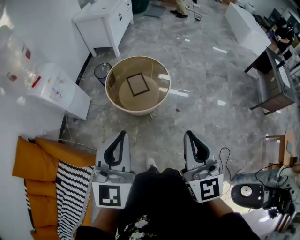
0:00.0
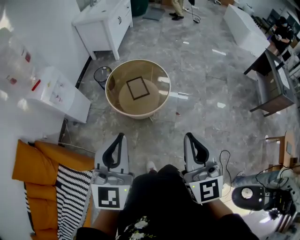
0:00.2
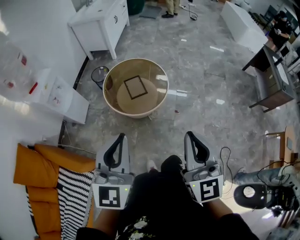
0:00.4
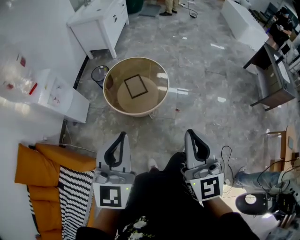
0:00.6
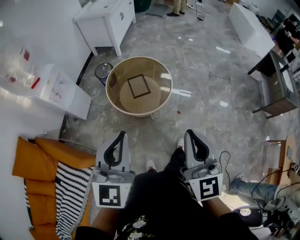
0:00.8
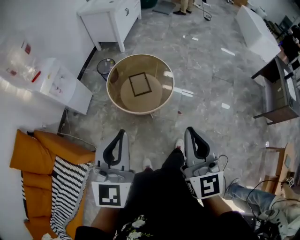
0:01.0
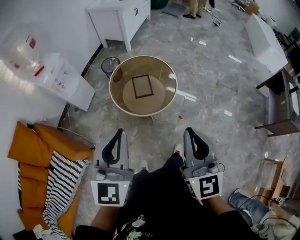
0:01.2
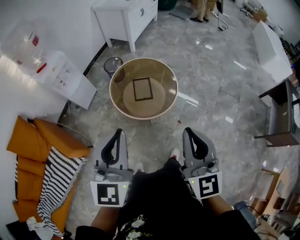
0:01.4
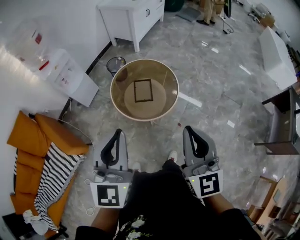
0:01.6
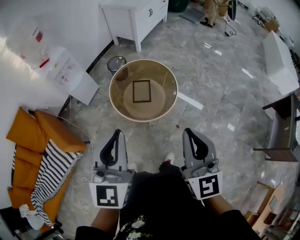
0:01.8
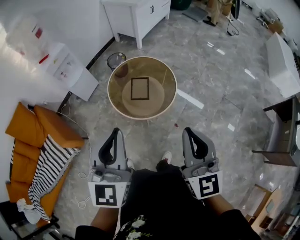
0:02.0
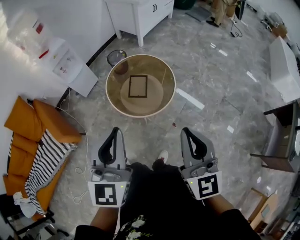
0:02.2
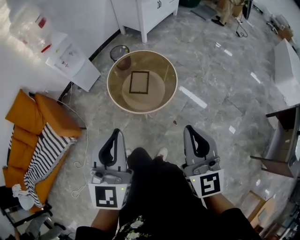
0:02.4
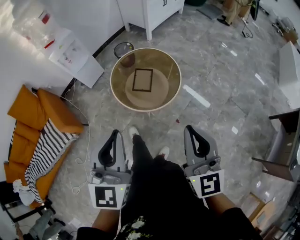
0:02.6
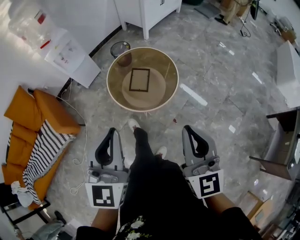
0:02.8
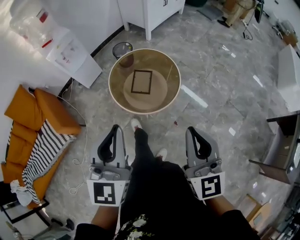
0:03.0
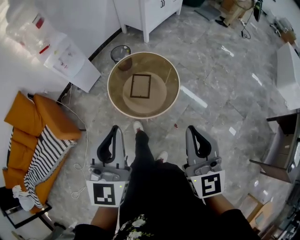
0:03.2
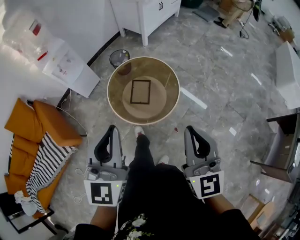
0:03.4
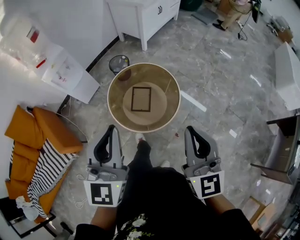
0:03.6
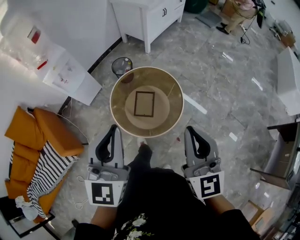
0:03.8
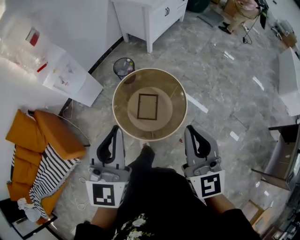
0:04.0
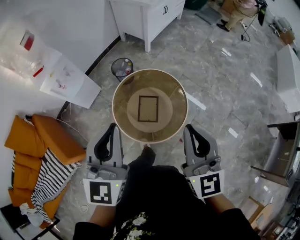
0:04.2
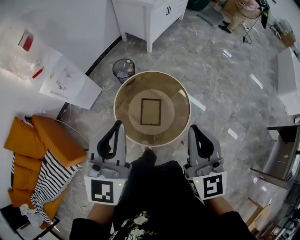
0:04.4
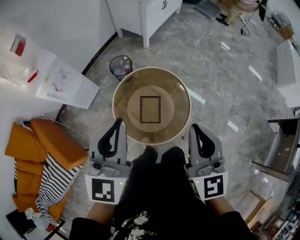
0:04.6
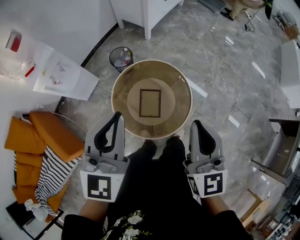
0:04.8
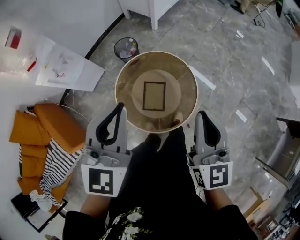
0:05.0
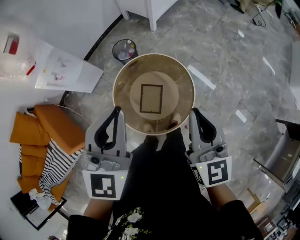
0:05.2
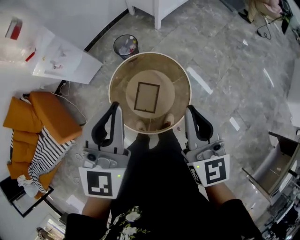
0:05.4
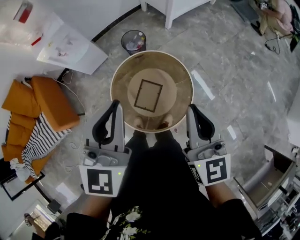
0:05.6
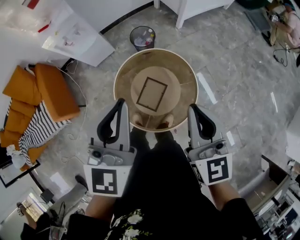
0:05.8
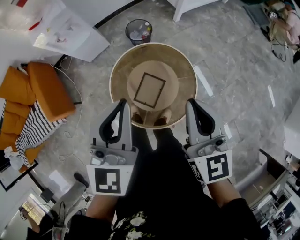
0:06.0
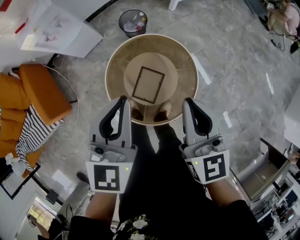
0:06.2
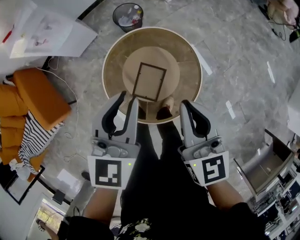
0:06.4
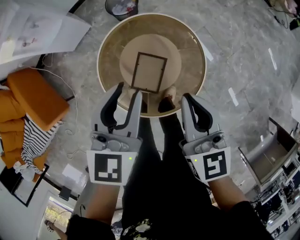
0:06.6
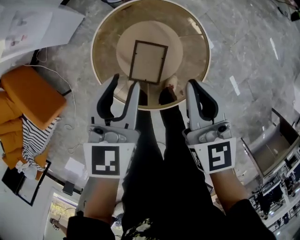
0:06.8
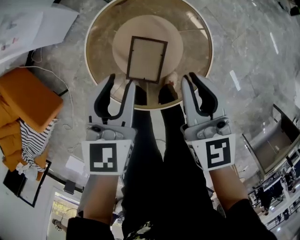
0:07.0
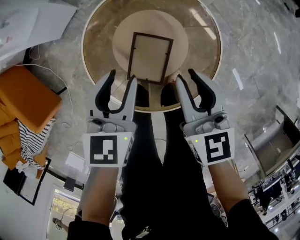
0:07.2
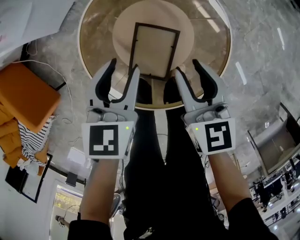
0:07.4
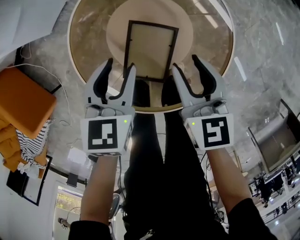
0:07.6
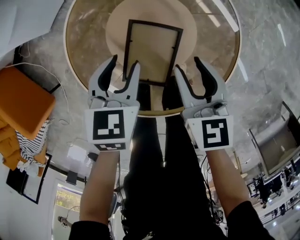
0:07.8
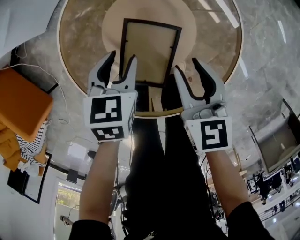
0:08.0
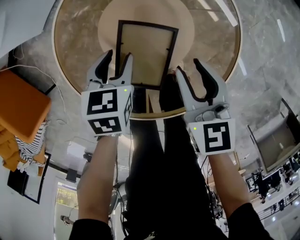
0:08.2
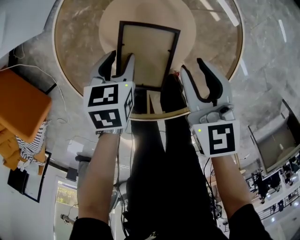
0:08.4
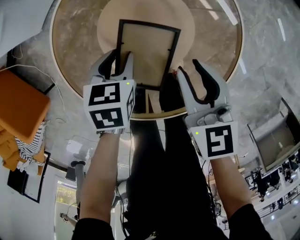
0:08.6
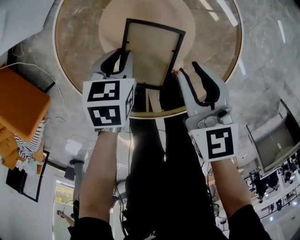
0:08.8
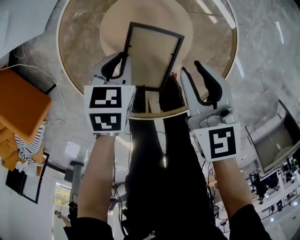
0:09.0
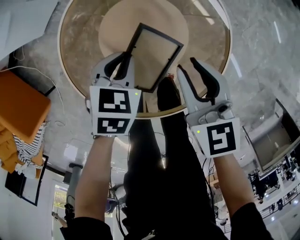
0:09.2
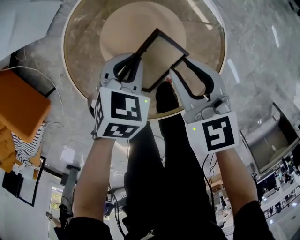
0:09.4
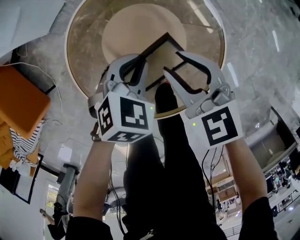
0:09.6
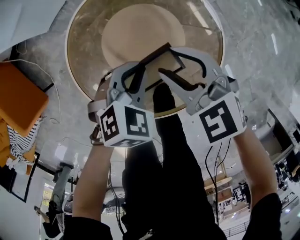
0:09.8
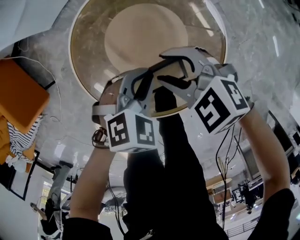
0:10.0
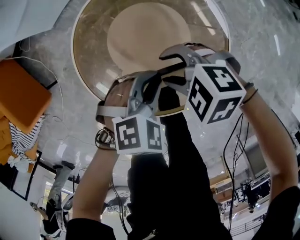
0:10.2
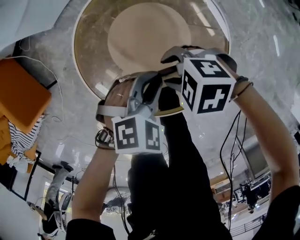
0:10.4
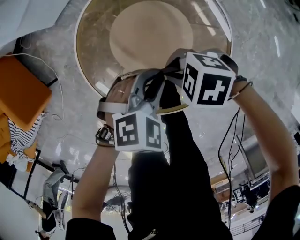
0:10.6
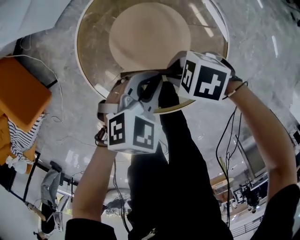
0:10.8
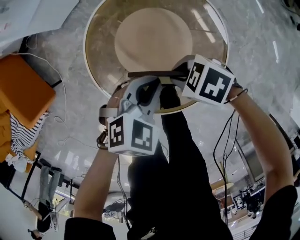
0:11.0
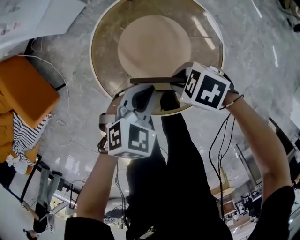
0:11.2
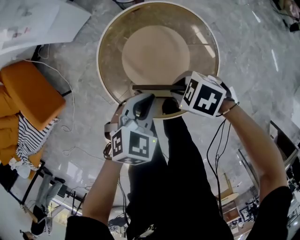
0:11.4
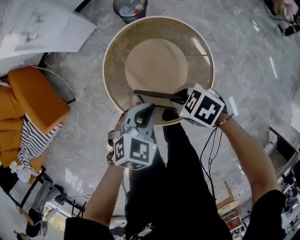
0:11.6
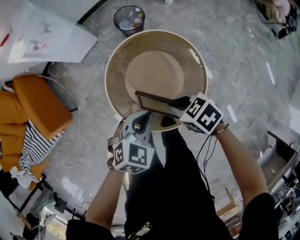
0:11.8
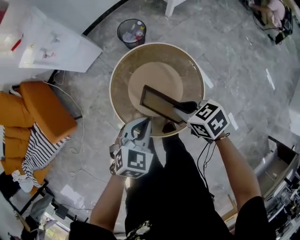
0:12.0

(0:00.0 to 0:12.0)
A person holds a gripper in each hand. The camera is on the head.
0:00.0 - 0:01.6: The grippers both shift forward and to the right by some 20 cm.
0:01.6 - 0:03.0: Both grippers move to the right, some 10 cm.
0:03.0 - 0:04.4: Both grippers travel together forward, roughly 30 cm.
0:04.4 - 0:06.0: The left gripper ends up about 15 cm from where it was, and rotates some 20 degrees. Meanwhile the right gripper ends up about 20 cm from where it was, and rotates roughly 30 degrees.
0:06.0 - 0:07.6: Both grippers move downward, about 50 cm. The right gripper changes its angle by about 30 degrees, and opens its fingers; the left gripper angles its fingers downward, by approximately 30 degrees, and opens.
0:07.6 - 0:09.0: The left gripper heads downward, covering about 10 cm, and closes.
0:09.0 - 0:10.4: The right gripper changes place by some 10 cm, turns by roughly 90 degrees, and opens its fingers. Meanwhile the left gripper is displaced upward by roughly 10 cm, and rotates around the line of its fingers by some 40 degrees, clockwise from behind.
0:10.4 - 0:12.0: Both grippers move upward, approximately 30 cm. The left gripper changes its angle by roughly 20 degrees, while the right gripper rotates around the line of its fingers by approximately 50 degrees, clockwise from behind, and closes up.

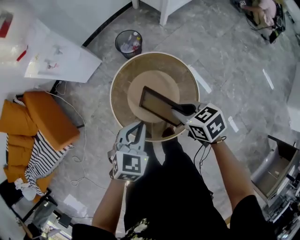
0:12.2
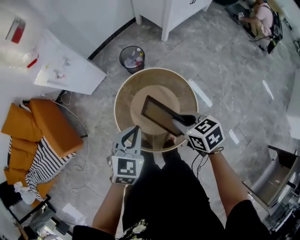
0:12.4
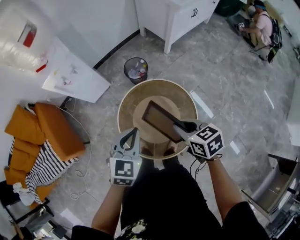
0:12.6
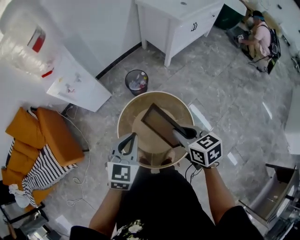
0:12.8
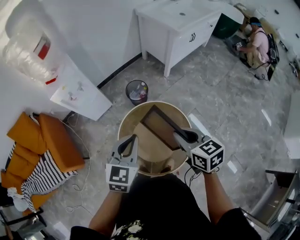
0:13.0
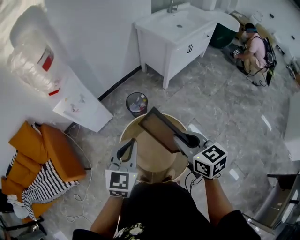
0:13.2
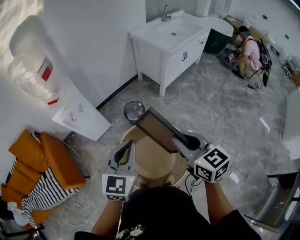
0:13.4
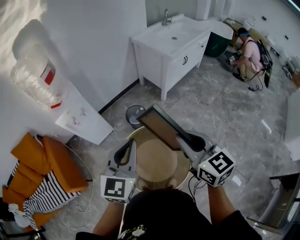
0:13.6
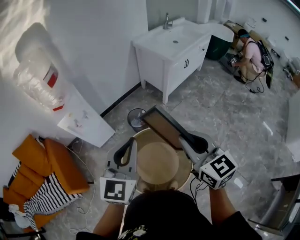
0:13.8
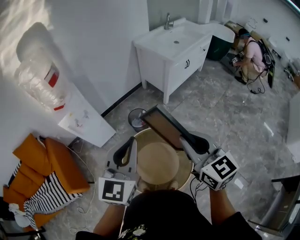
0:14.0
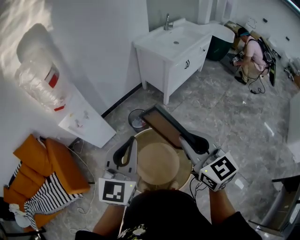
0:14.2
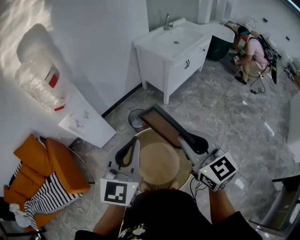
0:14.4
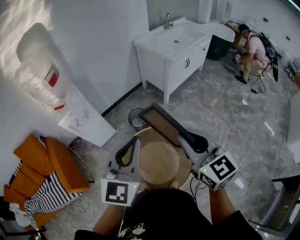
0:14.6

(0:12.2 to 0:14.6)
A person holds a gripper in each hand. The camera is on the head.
0:12.2 - 0:13.4: Both grippers travel together upward, roughly 30 cm. The right gripper changes its angle by some 40 degrees. The left gripper changes its angle by roughly 30 degrees.
0:13.4 - 0:14.6: Both grippers travel together upward, about 10 cm.

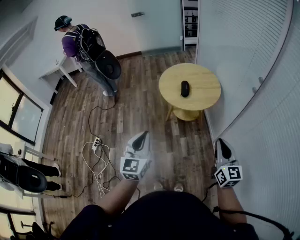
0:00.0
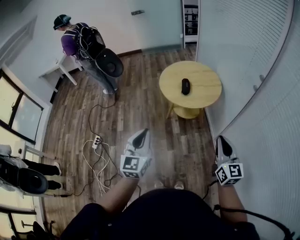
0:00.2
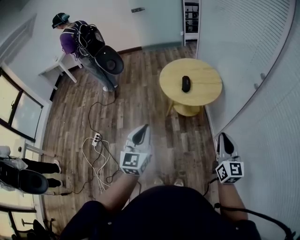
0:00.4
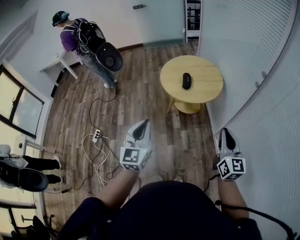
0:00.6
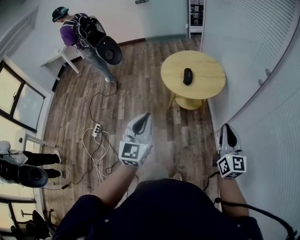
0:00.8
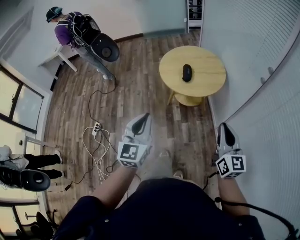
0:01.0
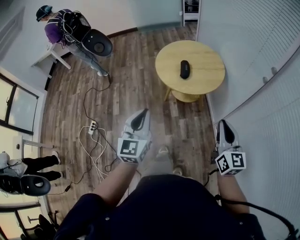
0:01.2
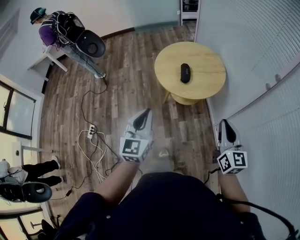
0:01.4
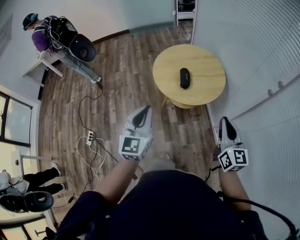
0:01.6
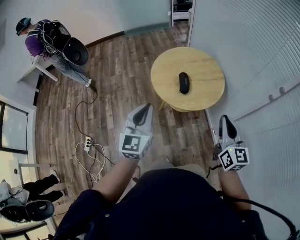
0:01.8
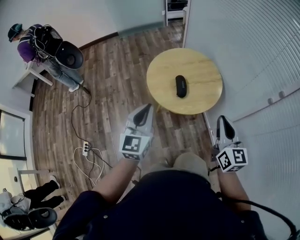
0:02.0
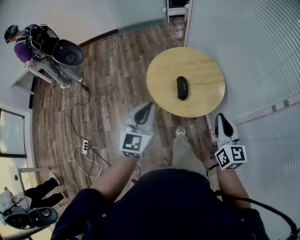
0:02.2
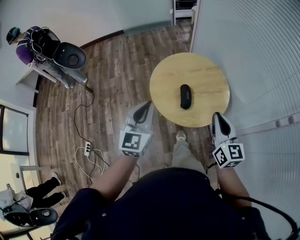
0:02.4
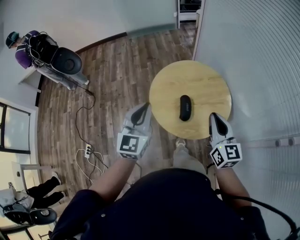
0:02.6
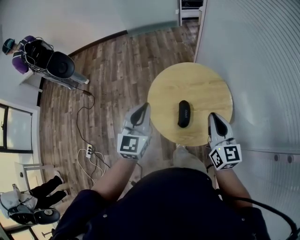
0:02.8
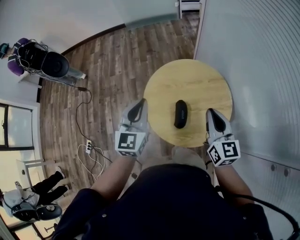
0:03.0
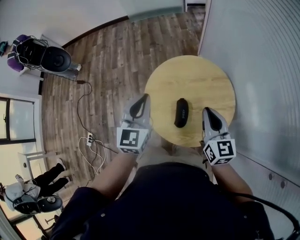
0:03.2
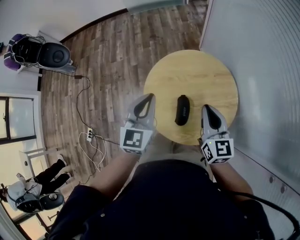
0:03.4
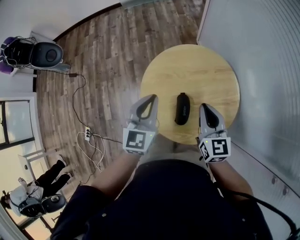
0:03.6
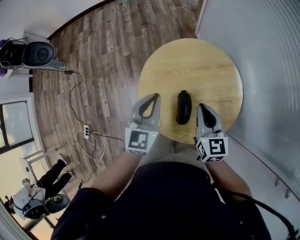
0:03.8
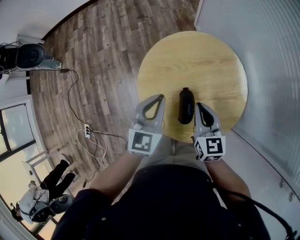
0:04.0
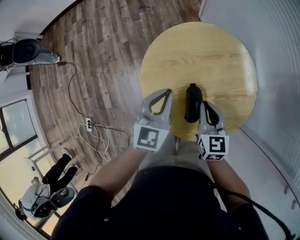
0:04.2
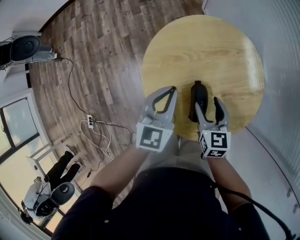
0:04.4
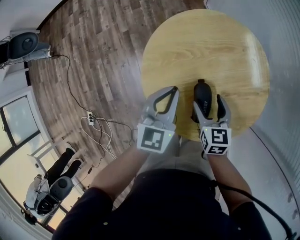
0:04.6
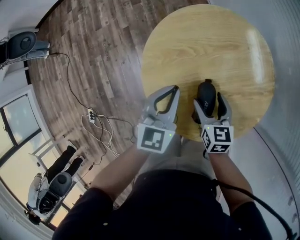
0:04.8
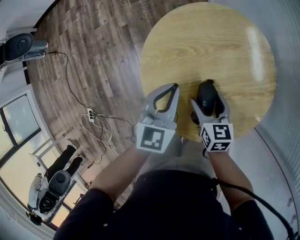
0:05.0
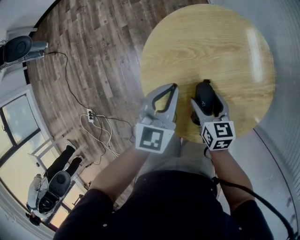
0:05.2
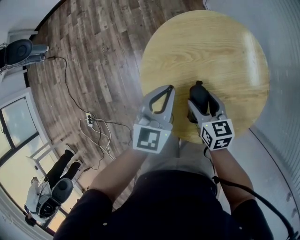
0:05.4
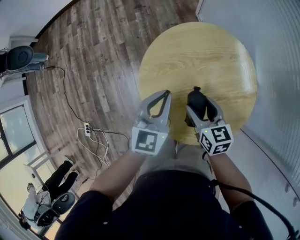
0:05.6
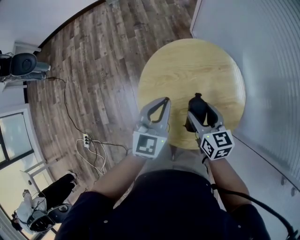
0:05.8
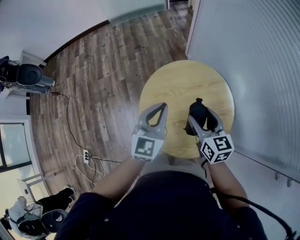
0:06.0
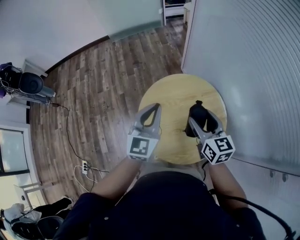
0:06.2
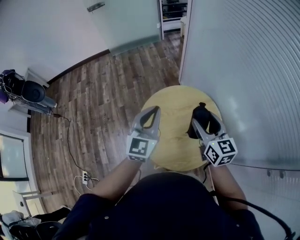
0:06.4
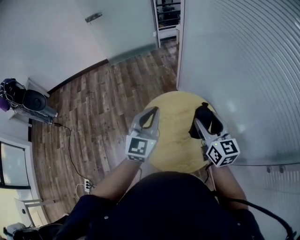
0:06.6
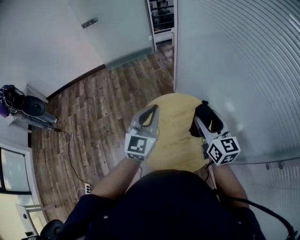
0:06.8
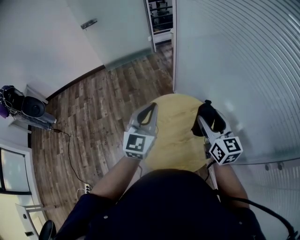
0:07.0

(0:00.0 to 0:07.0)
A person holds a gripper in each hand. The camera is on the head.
0:00.0 - 0:01.4: Both grippers move forward, some 15 cm.
0:01.4 - 0:02.8: Both grippers move forward, some 40 cm.
0:02.8 - 0:04.2: The grippers both shift downward and forward by some 25 cm. The right gripper rotates about 20 degrees.
0:04.2 - 0:05.6: The right gripper travels downward by approximately 5 cm, and opens up.
0:05.6 - 0:07.0: The left gripper shifts roughly 30 cm upward, and rotates approximately 20 degrees, while the right gripper heads upward and to the right, covering about 40 cm, and turns by about 40 degrees.

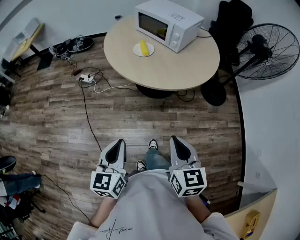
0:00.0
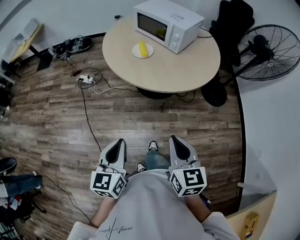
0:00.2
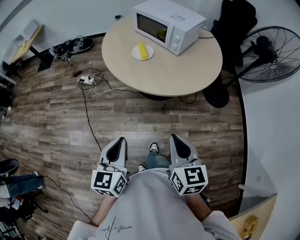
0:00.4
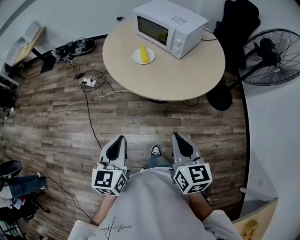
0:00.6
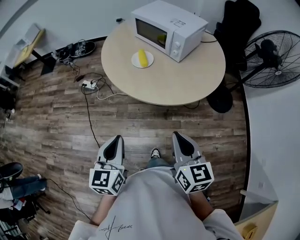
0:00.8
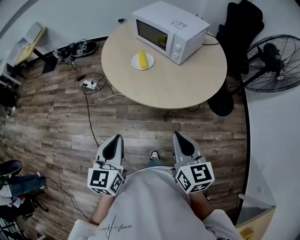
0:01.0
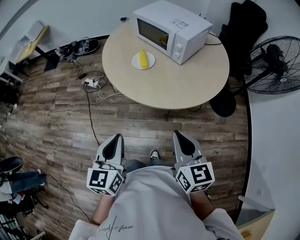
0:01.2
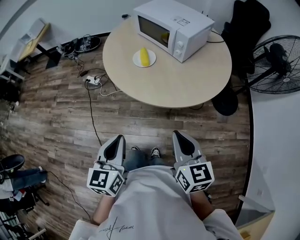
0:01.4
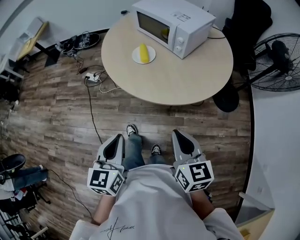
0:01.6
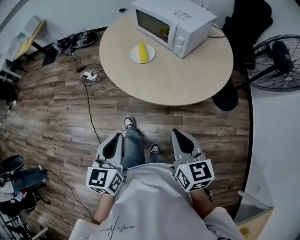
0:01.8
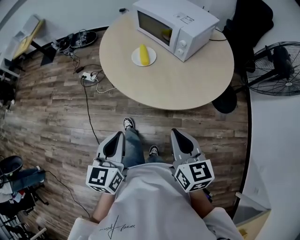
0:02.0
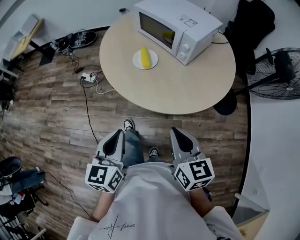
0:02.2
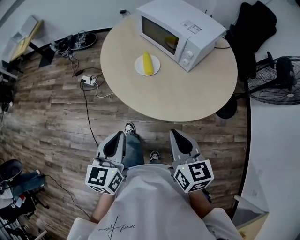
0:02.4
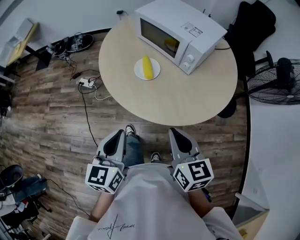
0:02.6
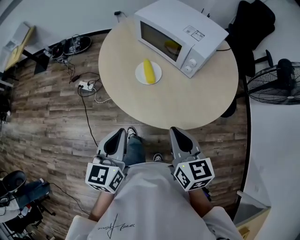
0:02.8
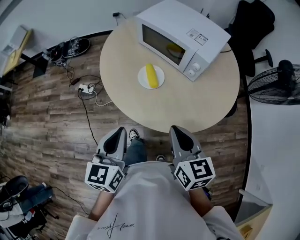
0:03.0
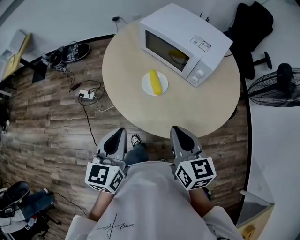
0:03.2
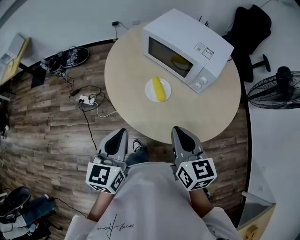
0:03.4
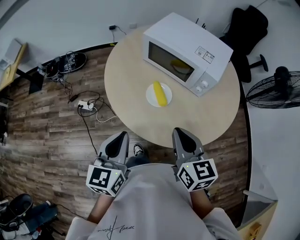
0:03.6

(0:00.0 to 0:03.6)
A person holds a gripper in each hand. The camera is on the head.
0:00.0 - 0:01.8: Both grippers travel together forward, approximately 15 cm.
0:01.8 - 0:03.6: The grippers both shift forward and to the left by approximately 30 cm.
